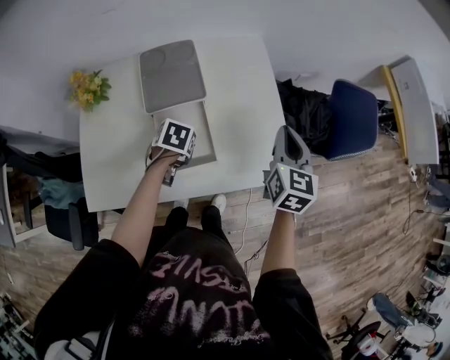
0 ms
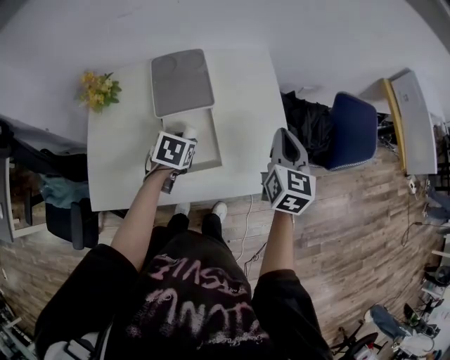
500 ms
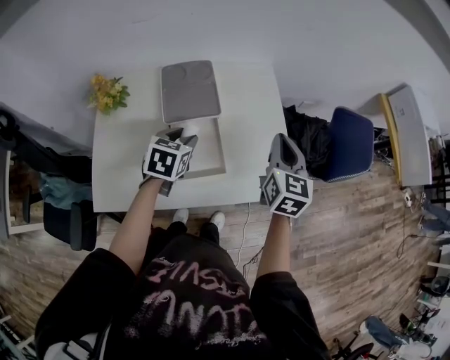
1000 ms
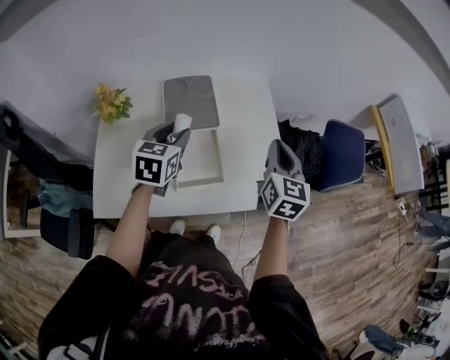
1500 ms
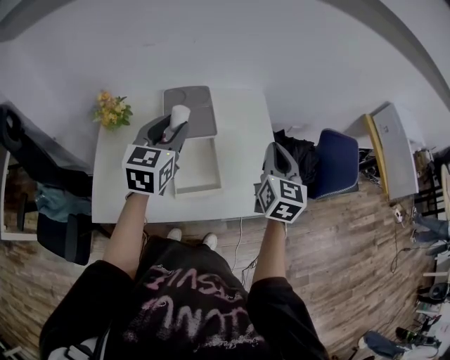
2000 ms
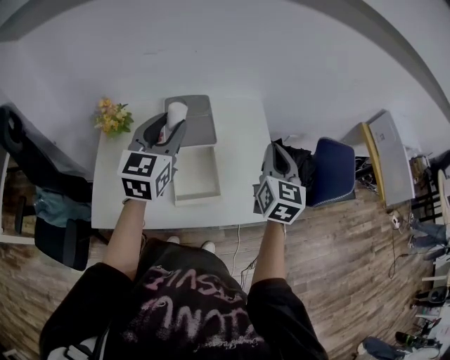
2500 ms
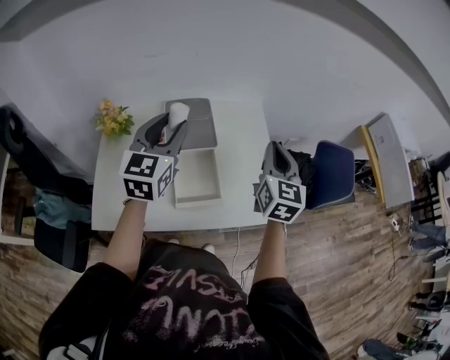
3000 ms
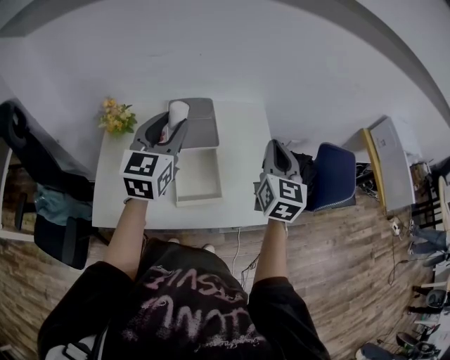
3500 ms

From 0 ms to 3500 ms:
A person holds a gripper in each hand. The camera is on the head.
From 0 ms to 2000 ms: The left gripper shifts roughly 30 cm upward, and tilts its fingers some 60 degrees upward; the right gripper is displaced upward and to the left by roughly 10 cm.
From 2000 ms to 3500 ms: The left gripper travels upward by some 5 cm.

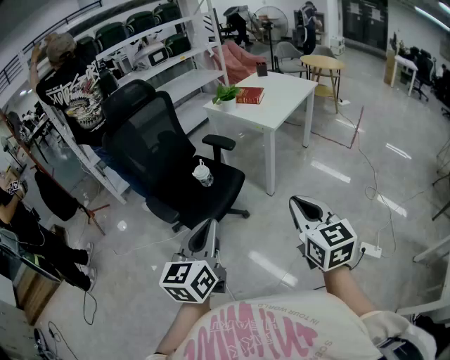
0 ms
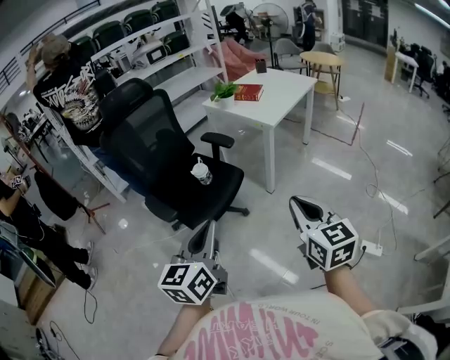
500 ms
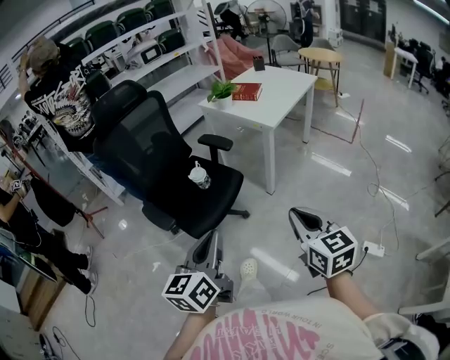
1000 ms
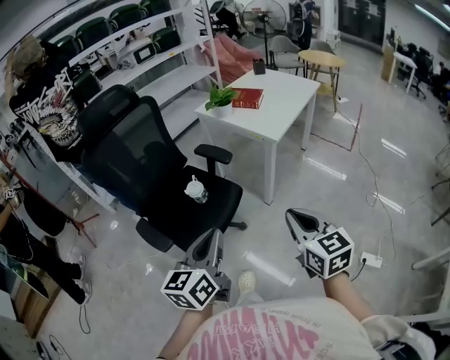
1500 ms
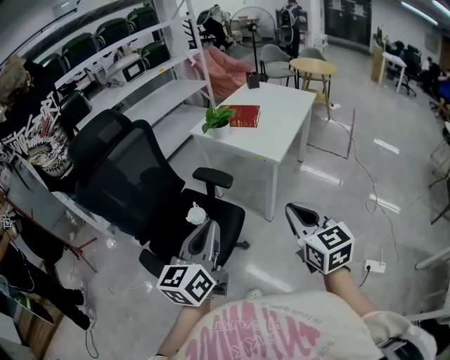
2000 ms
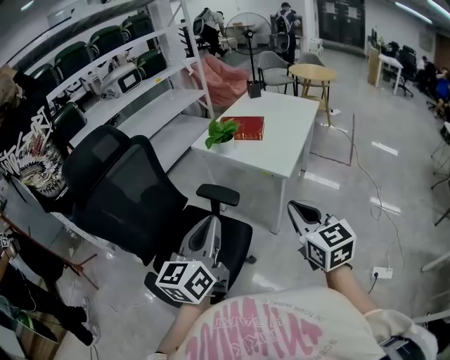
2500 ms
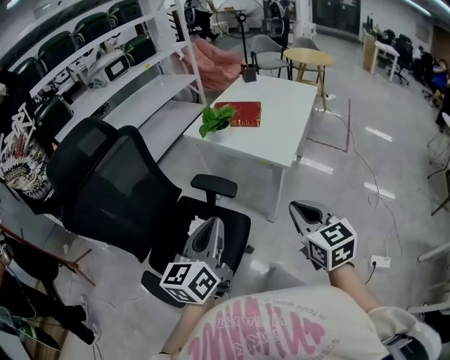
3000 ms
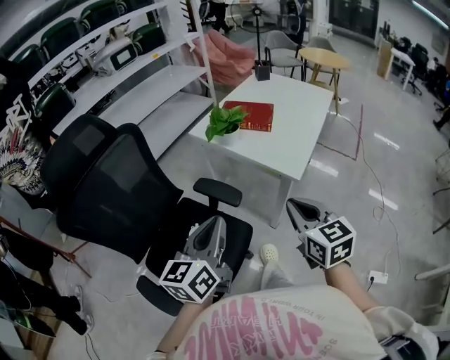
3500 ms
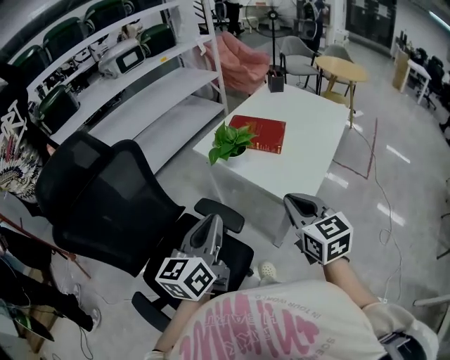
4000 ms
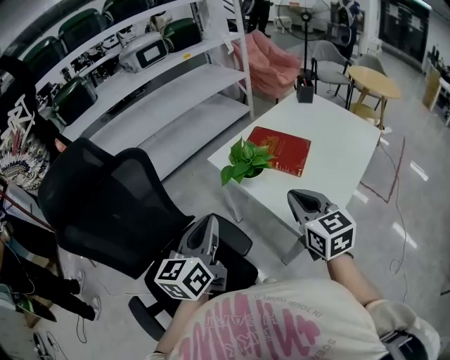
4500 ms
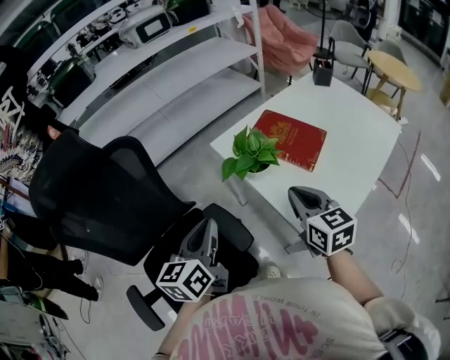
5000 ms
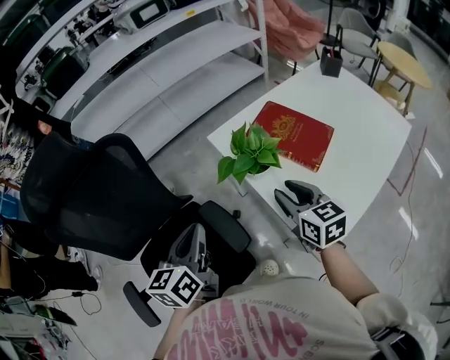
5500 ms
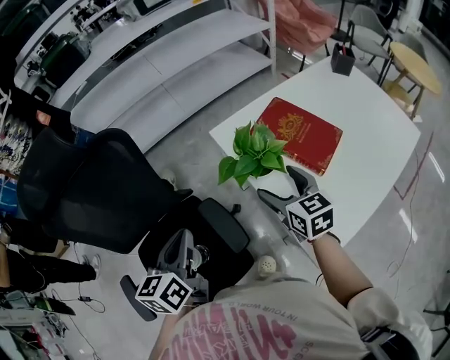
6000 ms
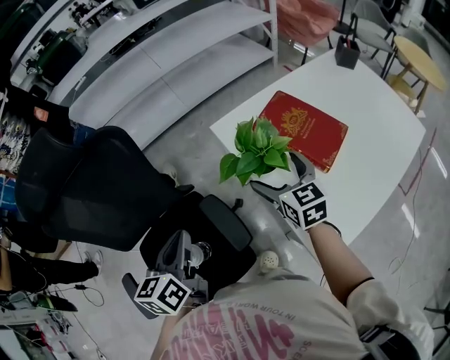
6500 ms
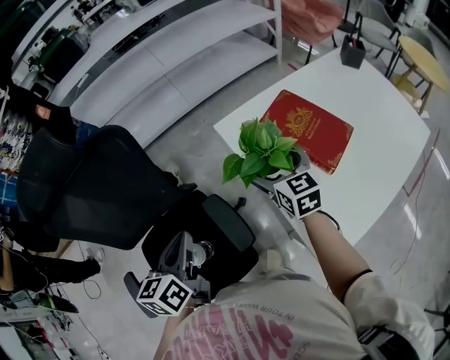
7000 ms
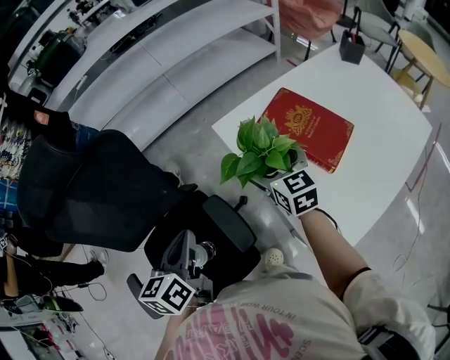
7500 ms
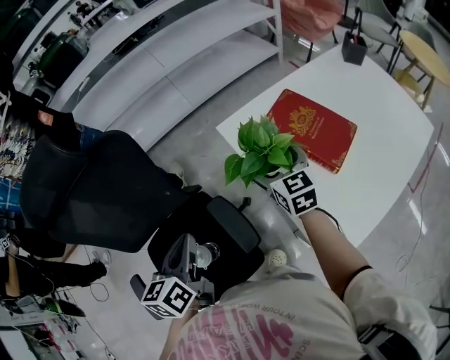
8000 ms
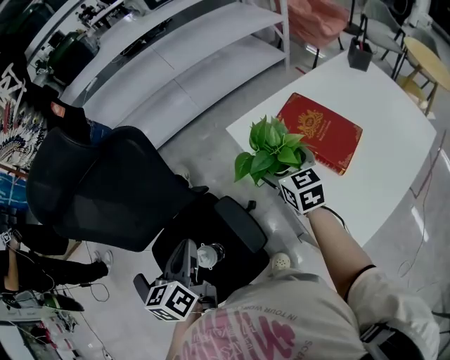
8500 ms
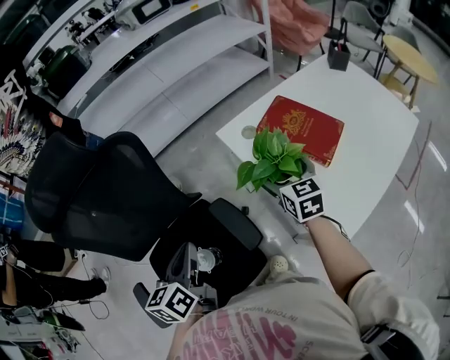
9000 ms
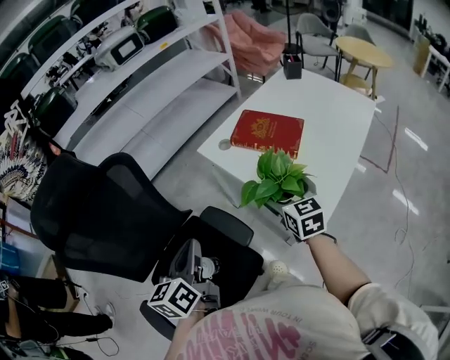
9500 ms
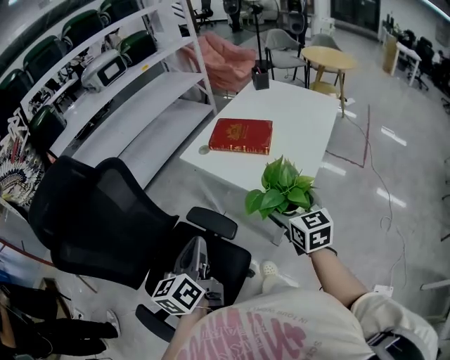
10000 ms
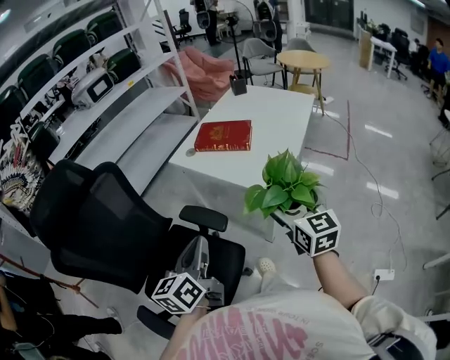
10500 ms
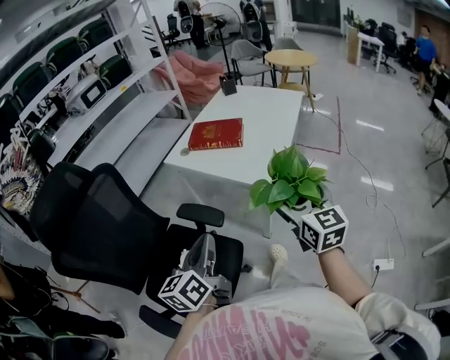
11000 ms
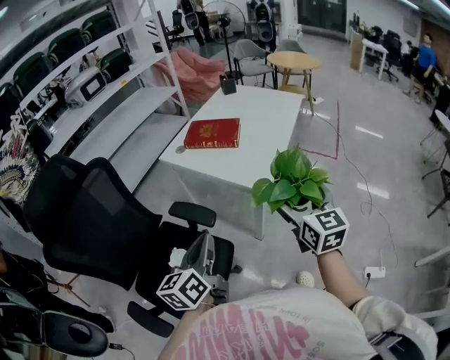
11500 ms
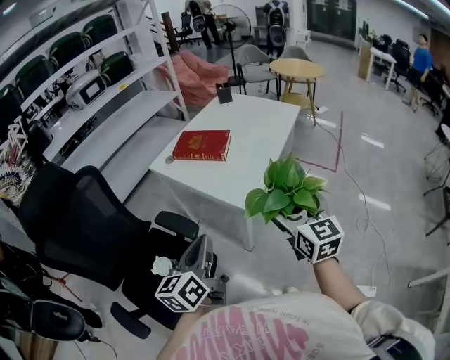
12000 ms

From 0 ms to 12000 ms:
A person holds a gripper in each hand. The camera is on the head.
From 0 ms to 2000 ms: Both grippers move forward, about 35 cm.
From 2000 ms to 4000 ms: The two grippers go some 40 cm forward.
From 4000 ms to 6000 ms: The left gripper changes place by some 20 cm, and rotates approximately 30 degrees, while the right gripper moves roughly 35 cm, swivels roughly 20 degrees, and opens its fingers.
From 6000 ms to 8000 ms: The right gripper is displaced forward by some 10 cm.
From 8000 ms to 10000 ms: The left gripper ends up roughly 20 cm from where it was, and changes its angle by approximately 30 degrees; the right gripper changes place by some 40 cm, and turns by approximately 30 degrees.
From 10000 ms to 12000 ms: The right gripper travels to the right, backward and upward by some 25 cm. Meanwhile the left gripper travels to the right by approximately 20 cm.

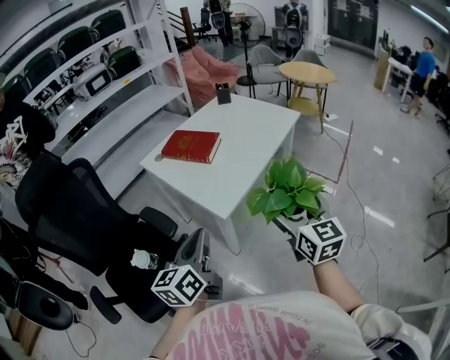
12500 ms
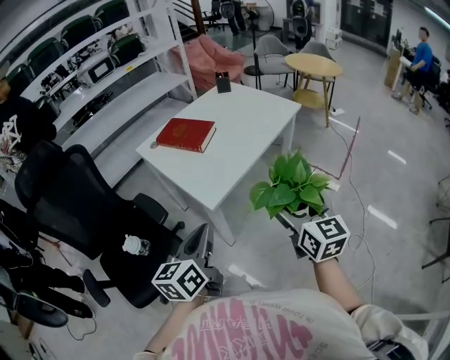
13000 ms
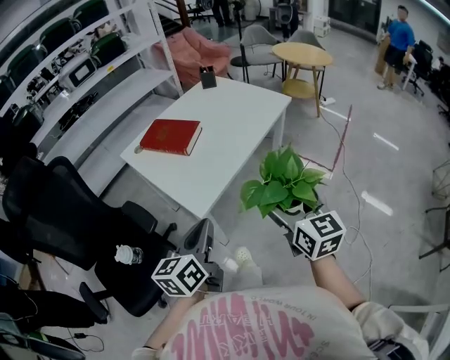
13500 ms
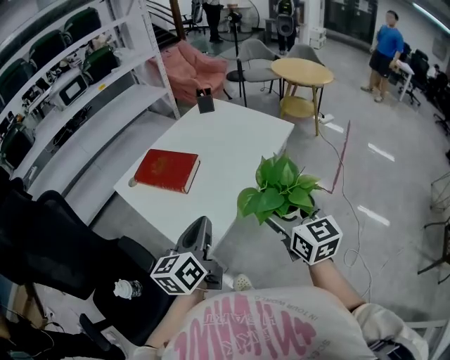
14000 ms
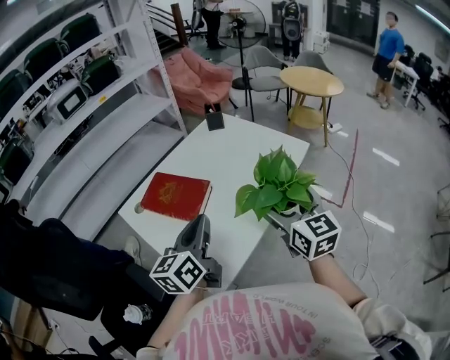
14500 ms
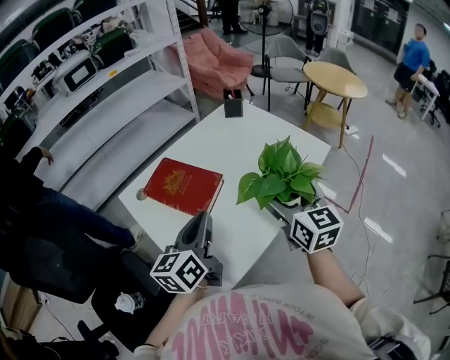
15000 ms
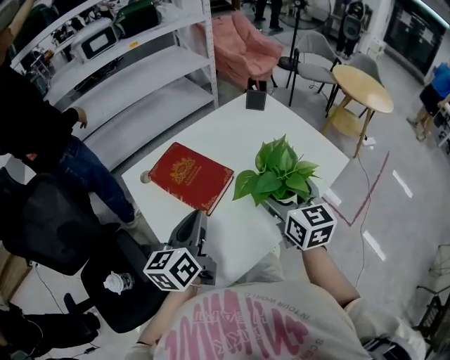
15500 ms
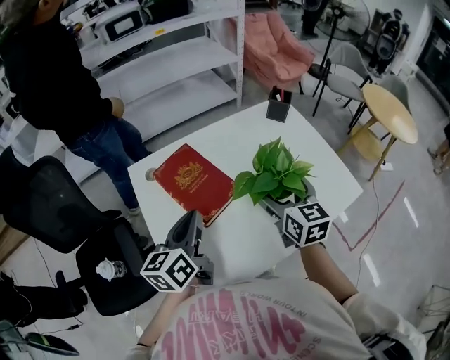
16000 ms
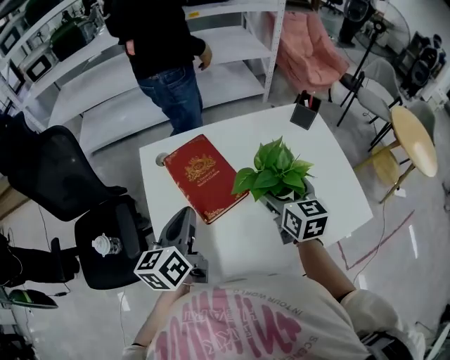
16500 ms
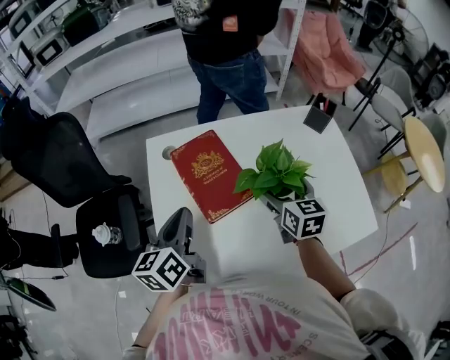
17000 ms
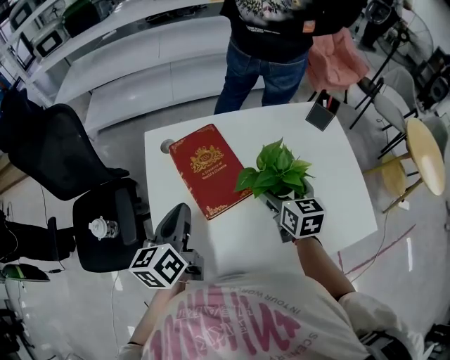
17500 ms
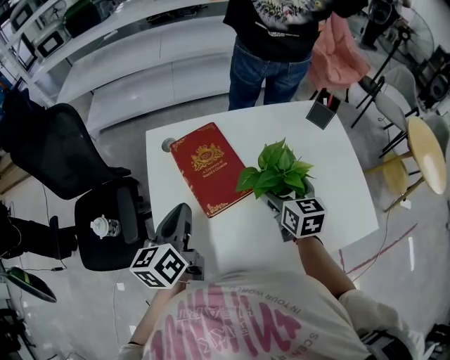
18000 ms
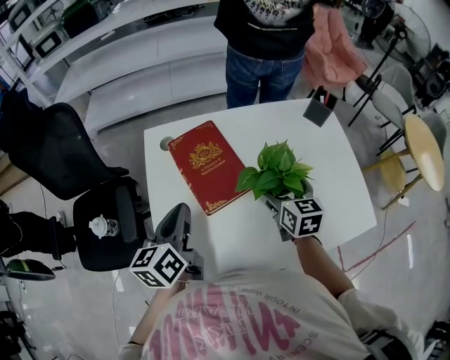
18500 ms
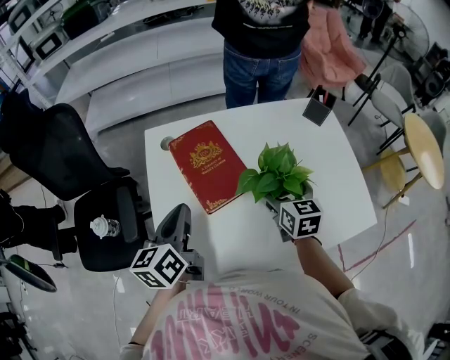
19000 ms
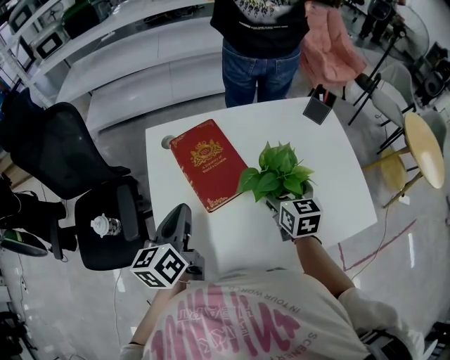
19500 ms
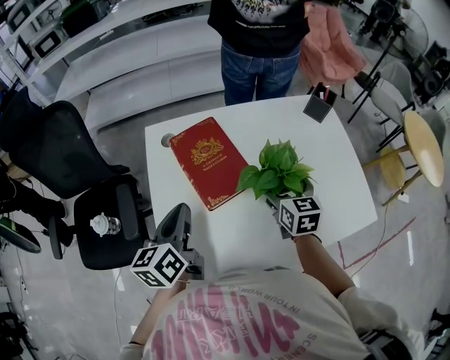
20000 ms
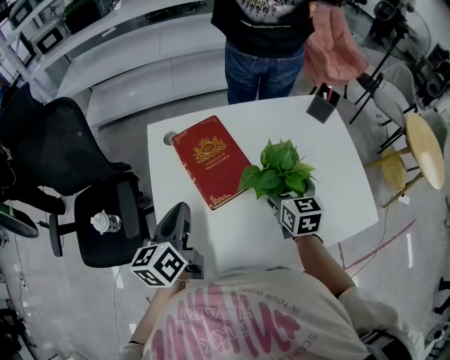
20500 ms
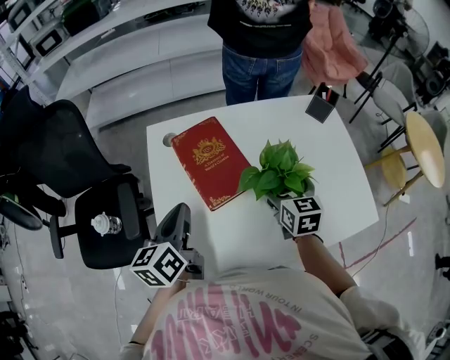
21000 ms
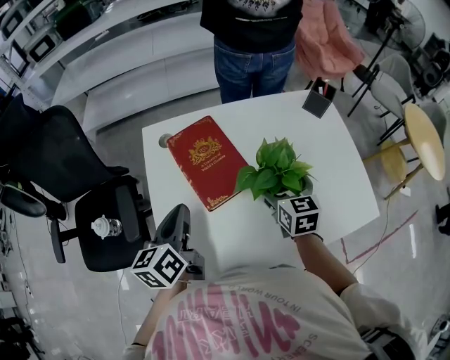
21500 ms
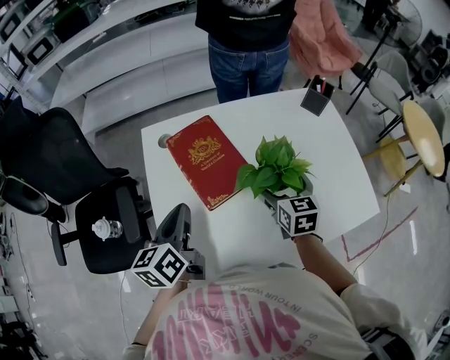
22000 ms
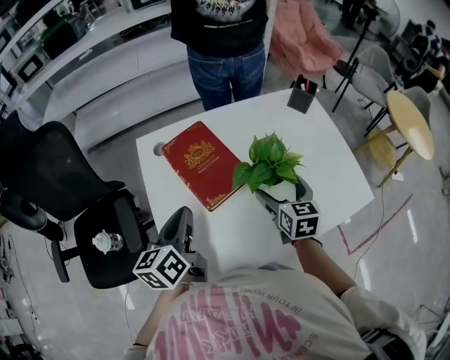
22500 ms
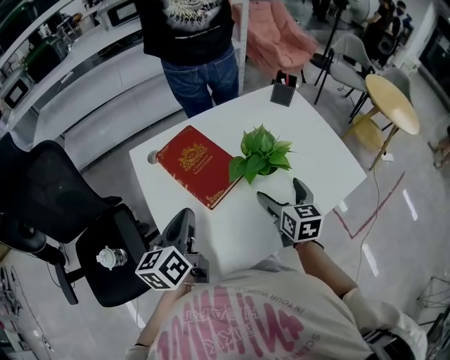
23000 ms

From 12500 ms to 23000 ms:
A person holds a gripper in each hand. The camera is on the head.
From 12500 ms to 14500 ms: The two grippers go approximately 35 cm forward.
From 14500 ms to 16500 ms: The left gripper shifts by approximately 20 cm, and rotates roughly 40 degrees, while the right gripper ends up some 35 cm from where it was, and rotates roughly 30 degrees.
From 16500 ms to 19000 ms: The right gripper is displaced downward by some 5 cm.
From 19000 ms to 21000 ms: The grippers make only small movements.
From 21000 ms to 23000 ms: The right gripper shifts about 10 cm backward.

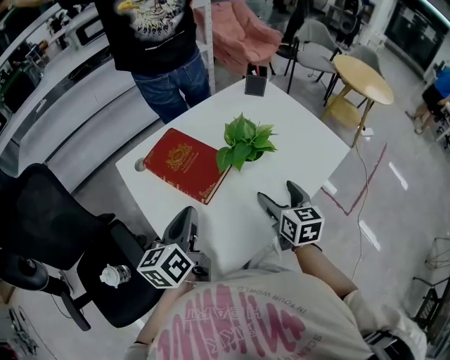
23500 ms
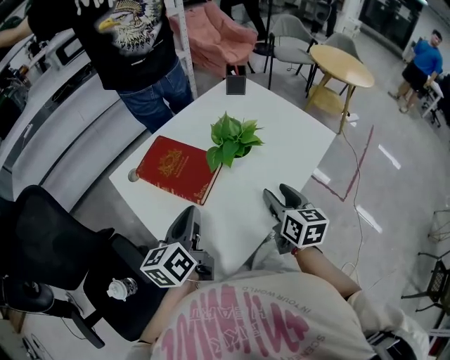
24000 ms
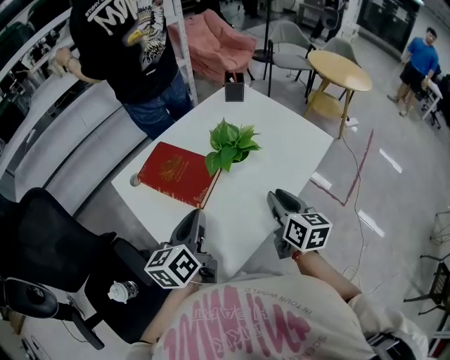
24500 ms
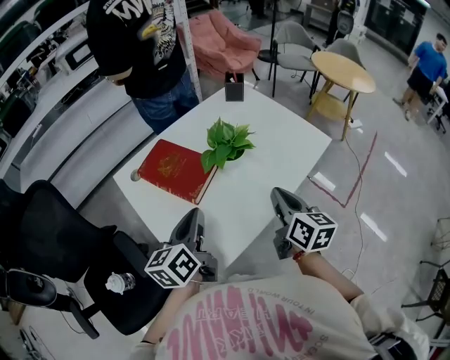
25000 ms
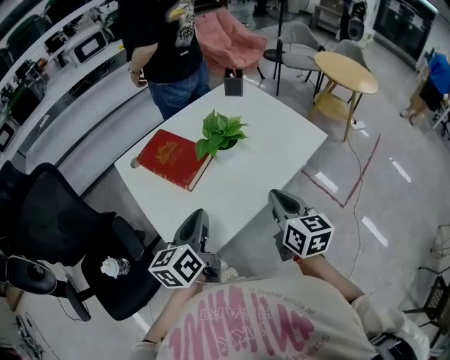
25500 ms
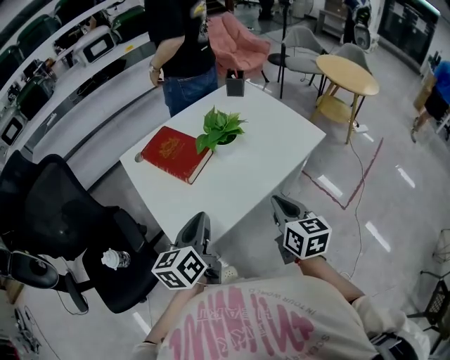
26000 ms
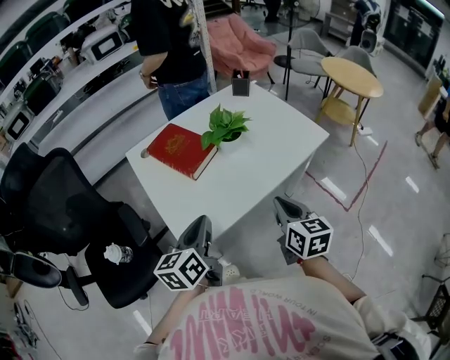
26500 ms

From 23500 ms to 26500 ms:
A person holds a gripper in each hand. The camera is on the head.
From 23500 ms to 25000 ms: The left gripper goes about 5 cm to the right, while the right gripper is displaced upward and backward by some 10 cm, changes its angle by about 20 degrees, and closes up.
From 25000 ms to 26500 ms: The grippers both shift backward by roughly 15 cm.
